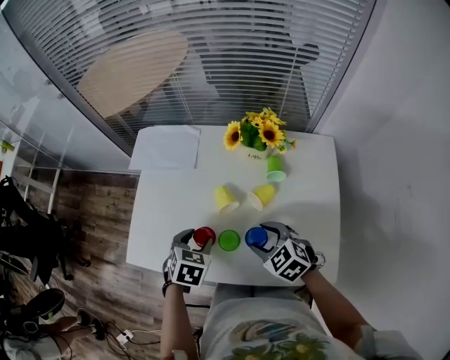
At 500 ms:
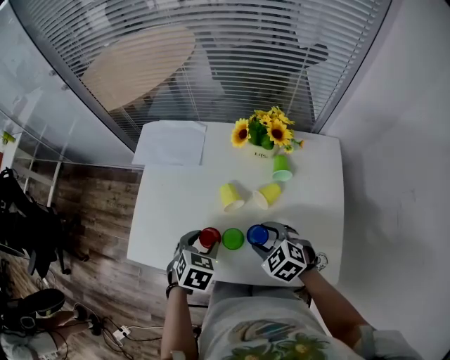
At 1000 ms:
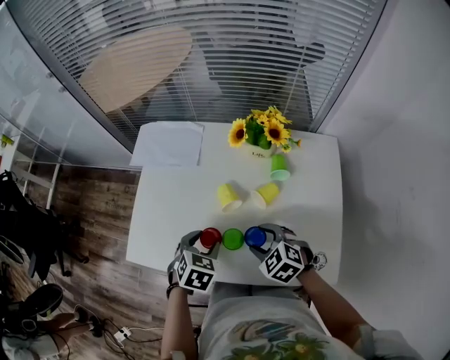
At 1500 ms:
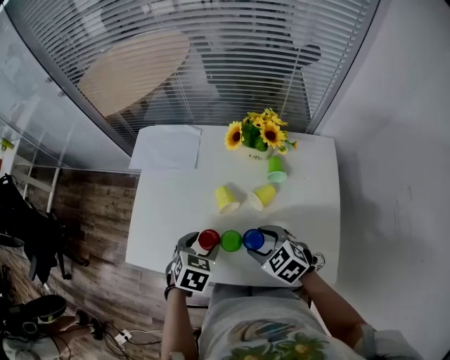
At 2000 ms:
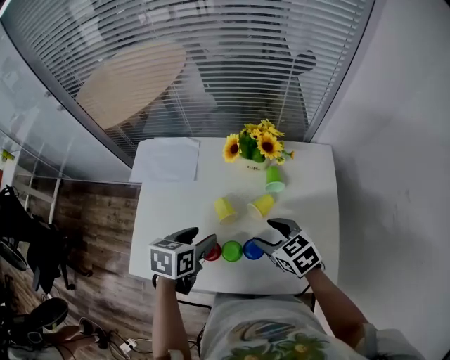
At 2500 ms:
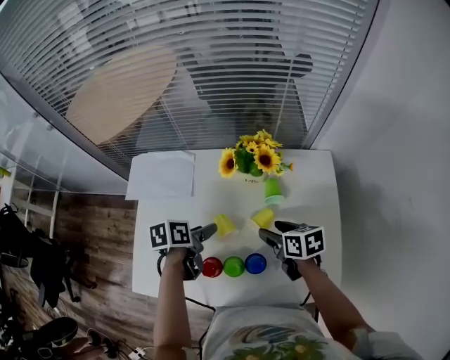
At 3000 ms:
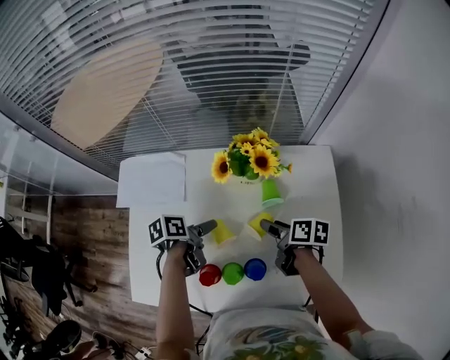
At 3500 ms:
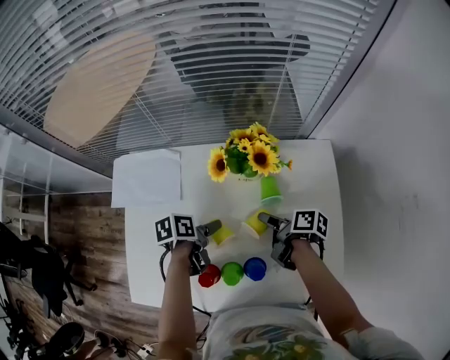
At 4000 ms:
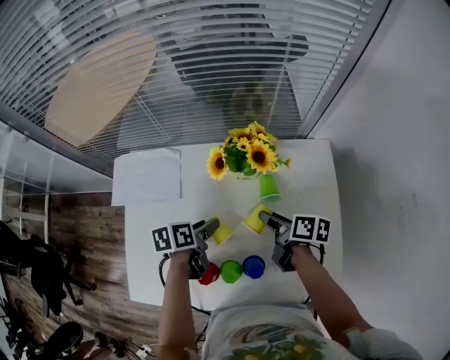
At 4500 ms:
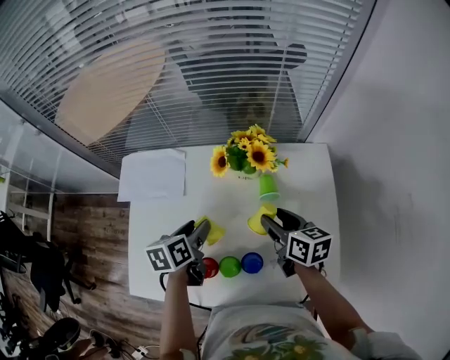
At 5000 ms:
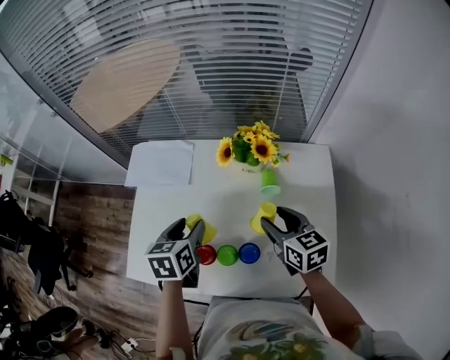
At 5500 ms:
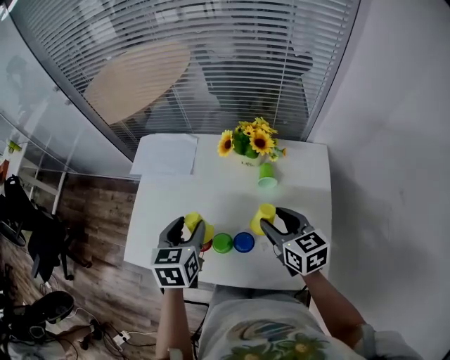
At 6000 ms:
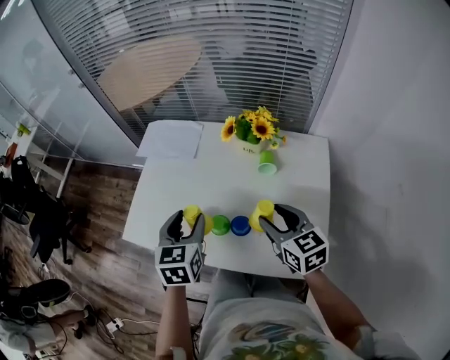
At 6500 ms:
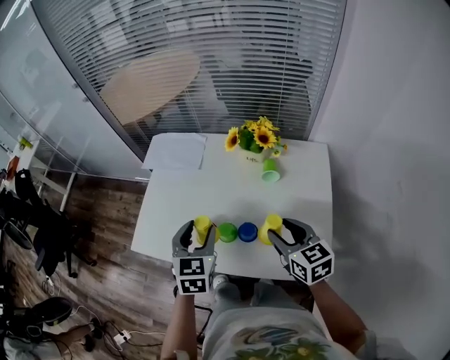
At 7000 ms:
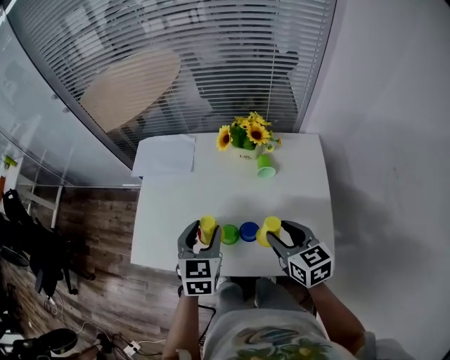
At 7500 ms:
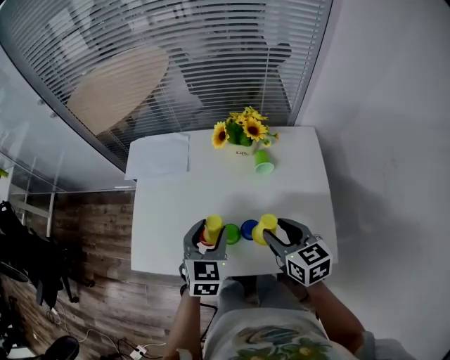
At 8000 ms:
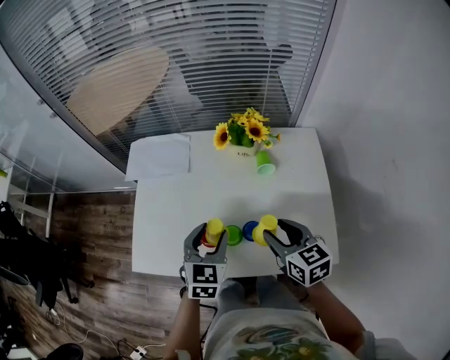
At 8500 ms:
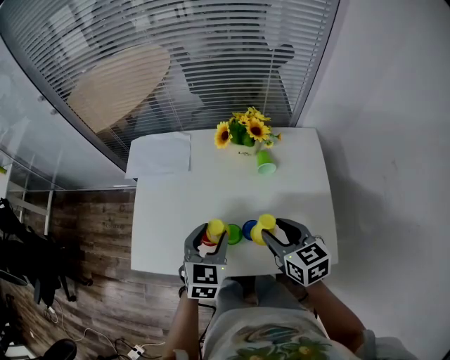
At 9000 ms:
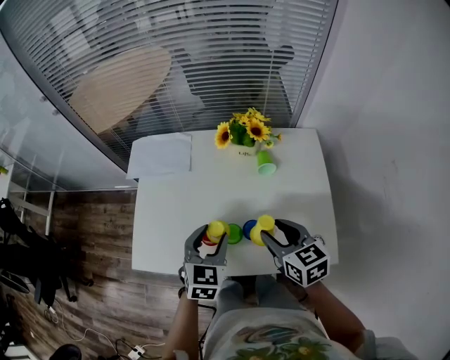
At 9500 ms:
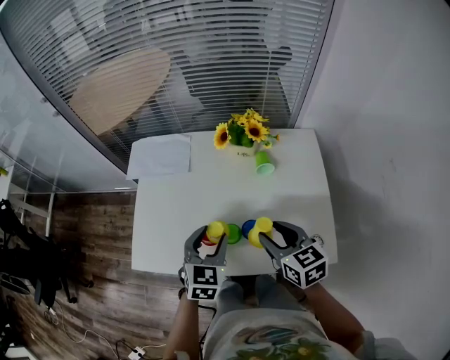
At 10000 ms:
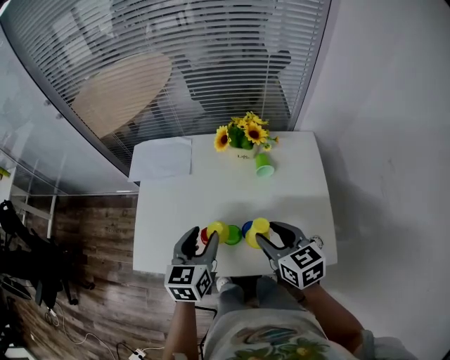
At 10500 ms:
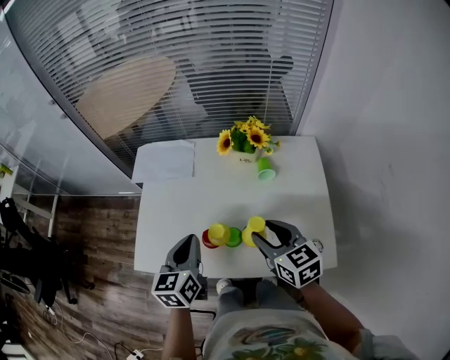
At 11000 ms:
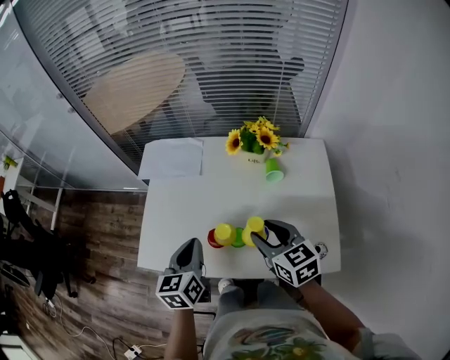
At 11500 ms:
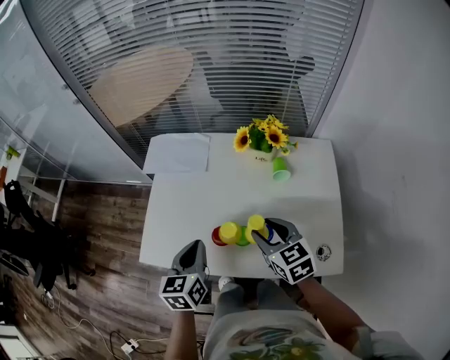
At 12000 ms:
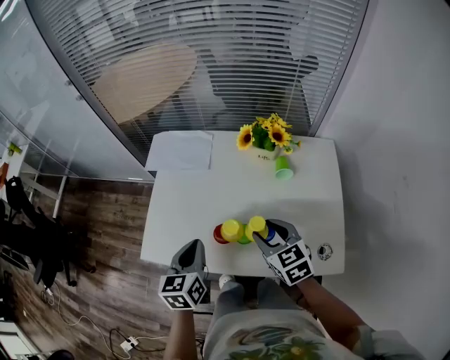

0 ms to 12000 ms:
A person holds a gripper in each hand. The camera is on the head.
0 ms to 2000 ms: The left gripper shifts some 5 cm upward, and changes its angle by approximately 30 degrees; the right gripper ends up about 5 cm from where it was, and swivels approximately 20 degrees.
2000 ms to 4000 ms: Both grippers move forward and downward, roughly 15 cm. The right gripper twists approximately 60 degrees clockwise, seen from behind, while the left gripper swivels approximately 30 degrees.
4000 ms to 6000 ms: The right gripper ends up some 20 cm from where it was, and rotates around the line of its fingers by approximately 60 degrees, counterclockwise from behind; the left gripper moves about 25 cm, and changes its angle by roughly 50 degrees.
6000 ms to 8000 ms: The left gripper ends up approximately 5 cm from where it was, and rotates some 30 degrees.
8000 ms to 10000 ms: The left gripper changes its angle by roughly 20 degrees.
10000 ms to 12000 ms: The left gripper moves to the left, some 10 cm, and closes its fingers. Meanwhile the right gripper shifts by approximately 5 cm.

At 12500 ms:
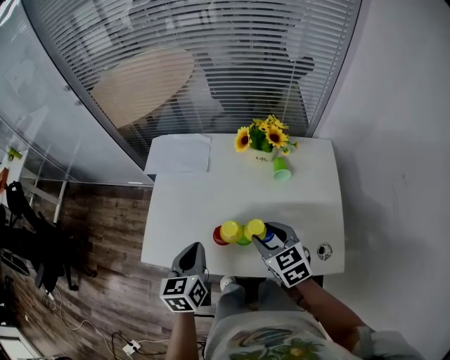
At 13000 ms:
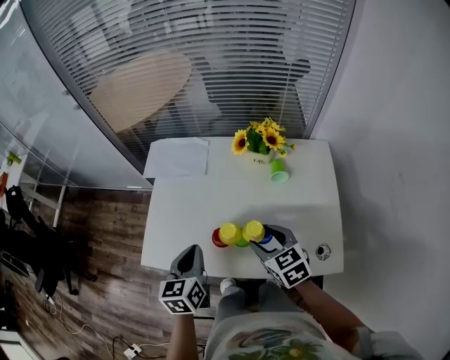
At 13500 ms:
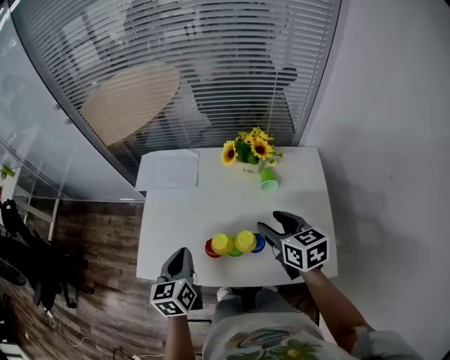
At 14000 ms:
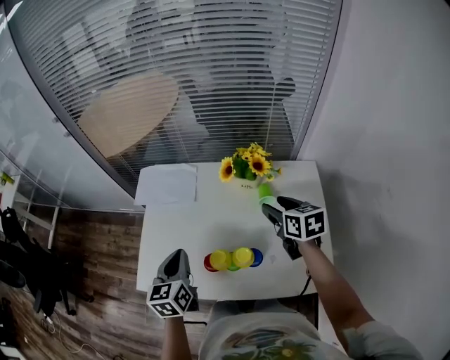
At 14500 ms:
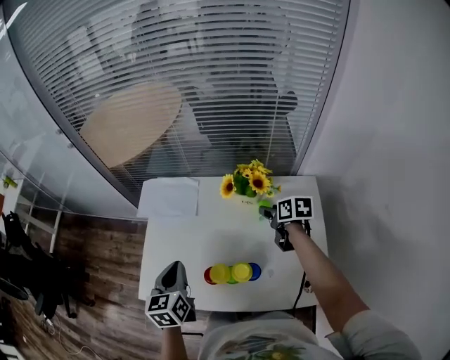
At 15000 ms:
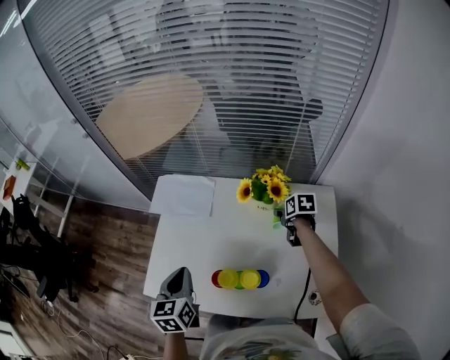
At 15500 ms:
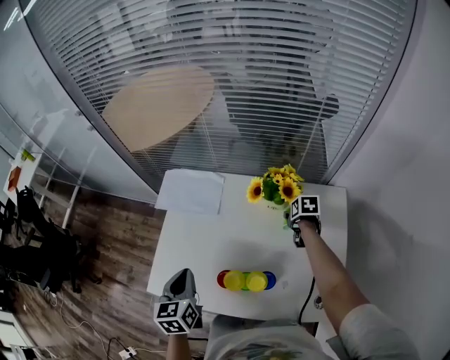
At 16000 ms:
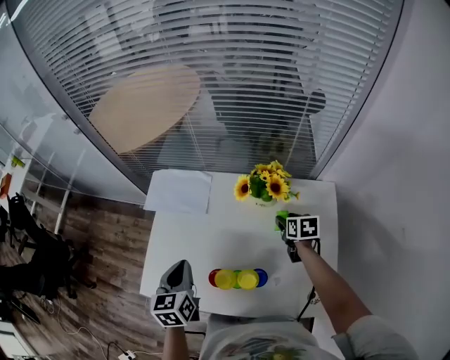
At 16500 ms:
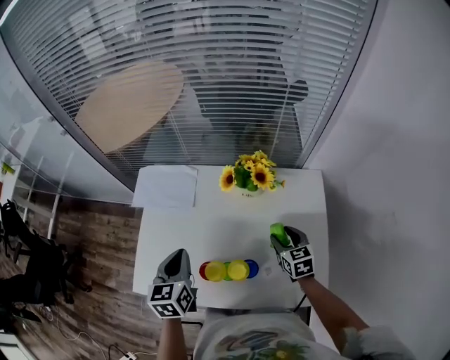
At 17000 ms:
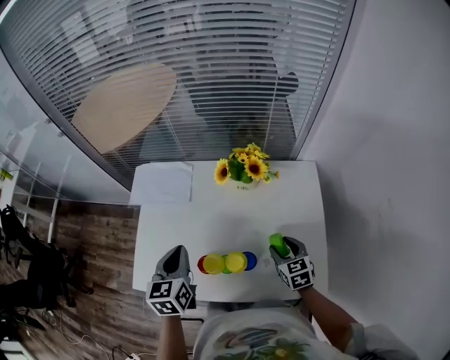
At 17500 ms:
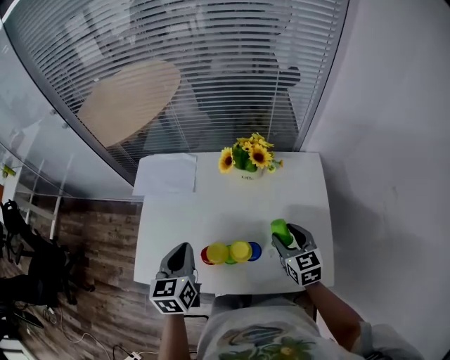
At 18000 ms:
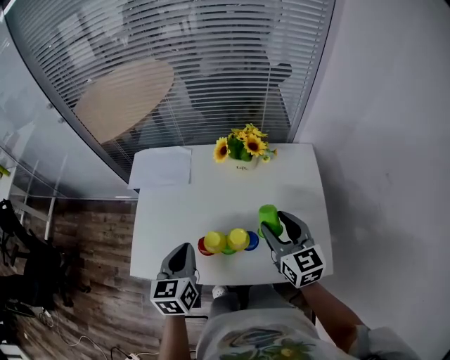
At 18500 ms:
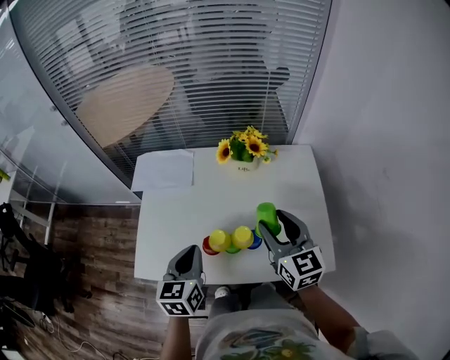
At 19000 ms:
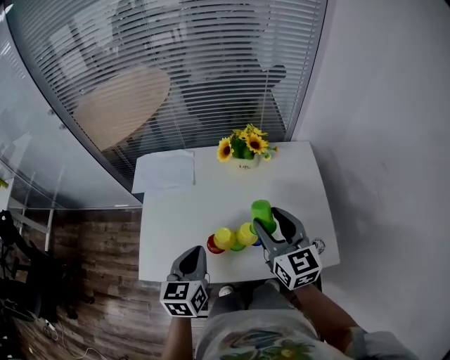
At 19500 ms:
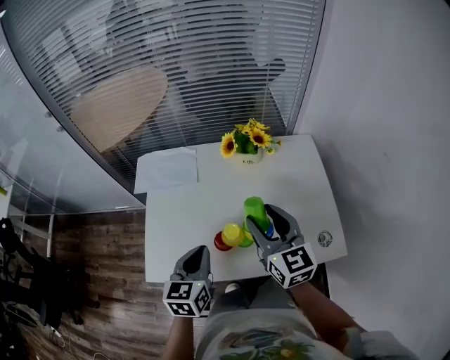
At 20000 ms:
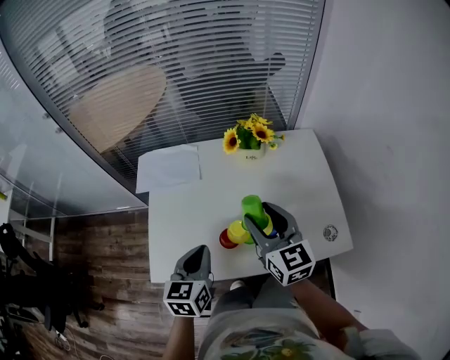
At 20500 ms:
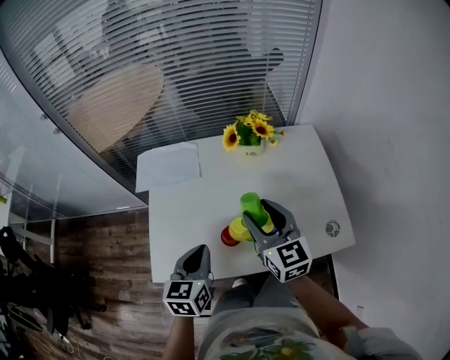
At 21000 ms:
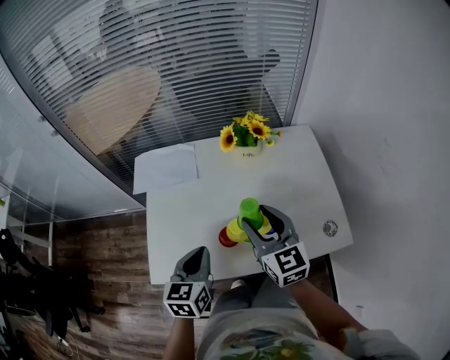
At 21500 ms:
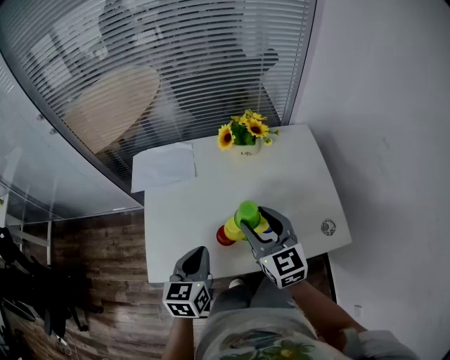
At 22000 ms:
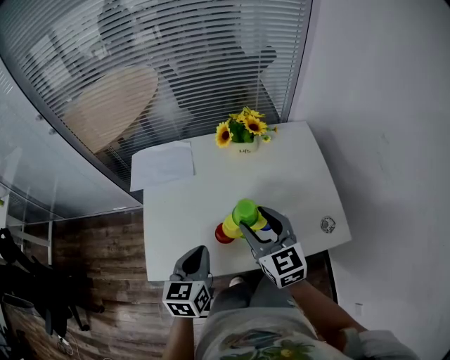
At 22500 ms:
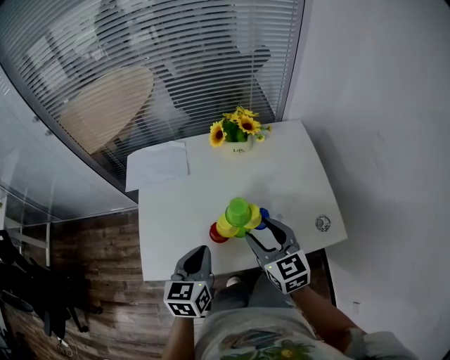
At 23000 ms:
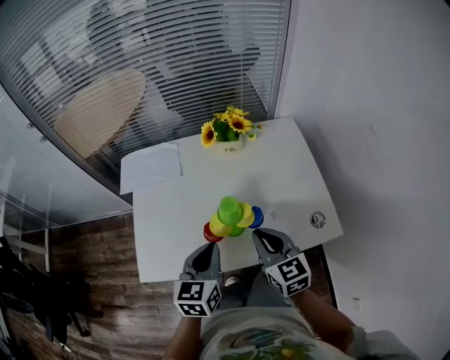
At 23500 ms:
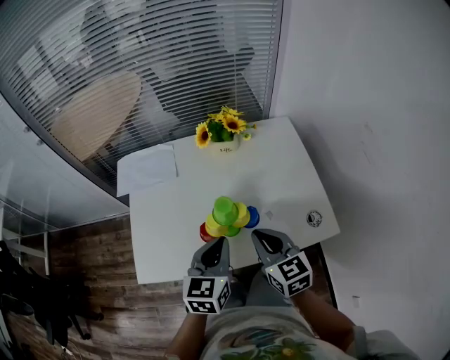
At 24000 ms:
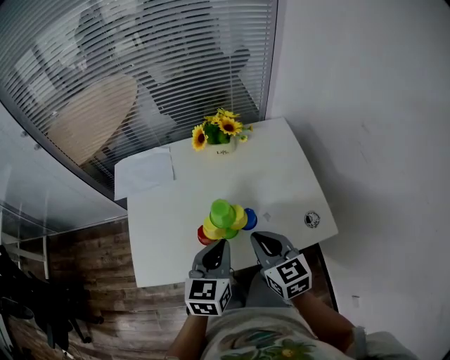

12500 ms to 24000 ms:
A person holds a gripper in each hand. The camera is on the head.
12500 ms to 14500 ms: The right gripper is displaced forward and to the right by roughly 25 cm, and rolls clockwise, seen from behind, by about 40 degrees, while the left gripper shifts some 10 cm forward.
14500 ms to 16500 ms: The right gripper goes about 10 cm backward, and swivels approximately 30 degrees.
16500 ms to 18500 ms: The left gripper travels backward by about 10 cm; the right gripper goes some 20 cm upward, backward and to the left, and swivels about 30 degrees.
18500 ms to 20000 ms: The right gripper heads to the left, covering some 10 cm.
20000 ms to 22000 ms: The grippers make only small movements.
22000 ms to 24000 ms: The left gripper travels to the right by some 10 cm. Meanwhile the right gripper is displaced to the right and backward by about 10 cm, and closes.

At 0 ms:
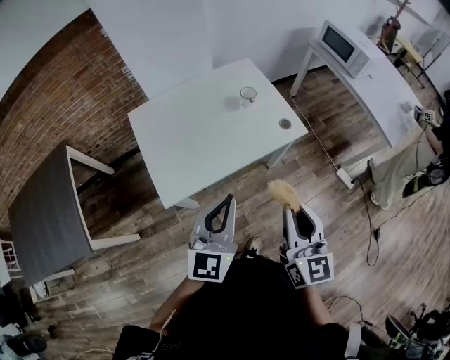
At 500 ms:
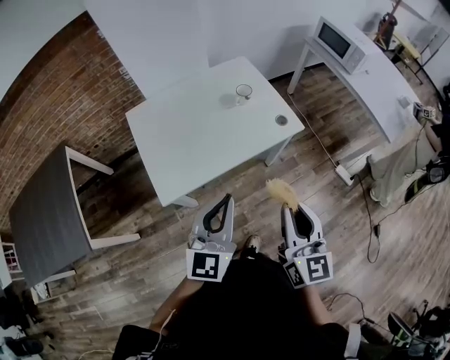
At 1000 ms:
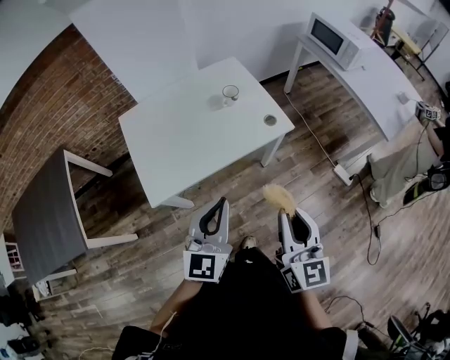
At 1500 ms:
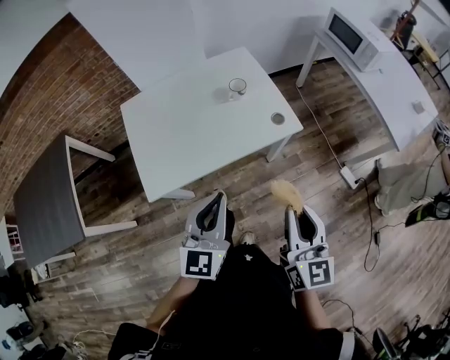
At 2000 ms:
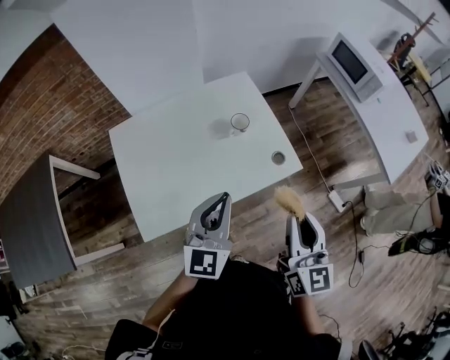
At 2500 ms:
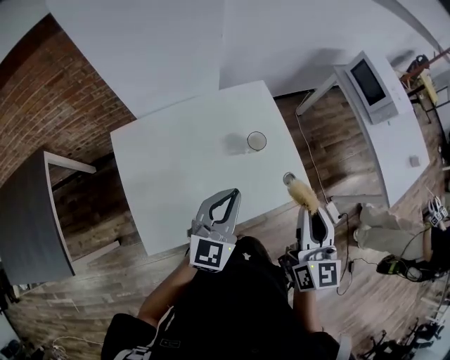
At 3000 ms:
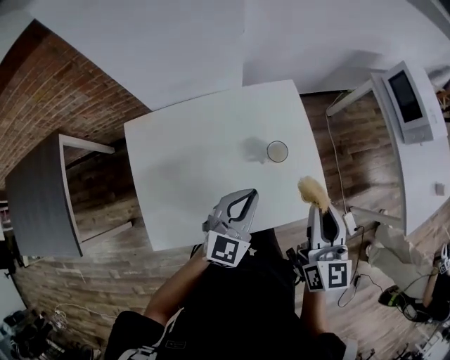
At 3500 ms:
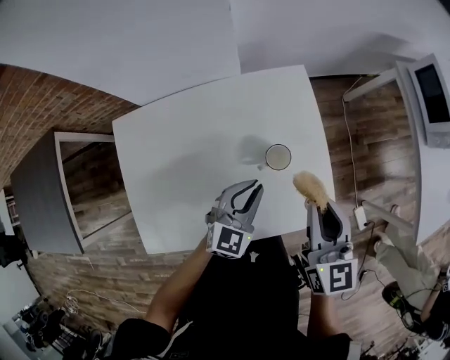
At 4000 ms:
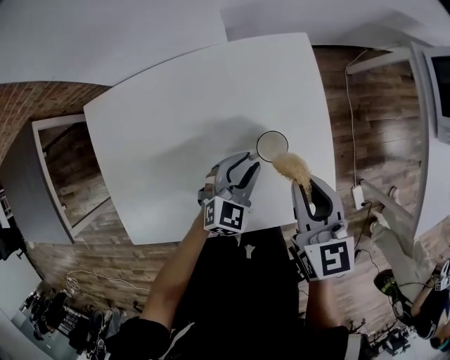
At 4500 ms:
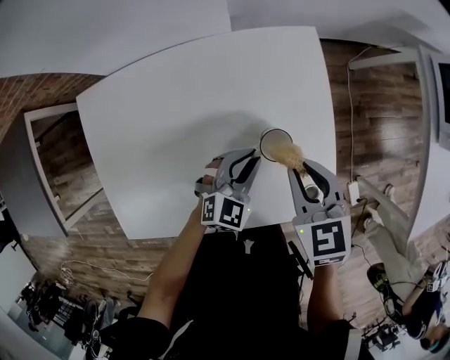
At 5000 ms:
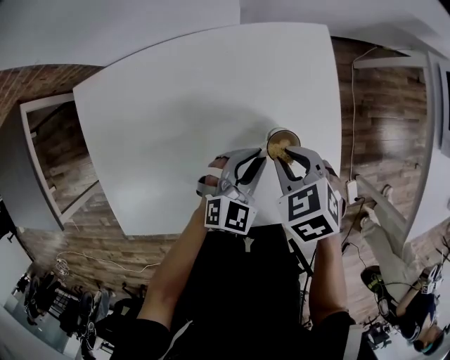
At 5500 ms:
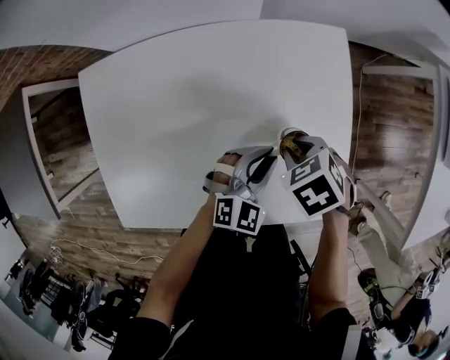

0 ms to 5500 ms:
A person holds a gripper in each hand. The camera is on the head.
0 ms to 2000 ms: Both grippers move forward, roughly 20 cm.
2000 ms to 3500 ms: The left gripper moves forward and downward, approximately 30 cm, and changes its angle by some 20 degrees, while the right gripper is displaced forward by about 30 cm, and swivels about 20 degrees.
3500 ms to 5500 ms: The left gripper travels downward by some 10 cm. The right gripper moves downward, roughly 20 cm, and tilts its fingers about 60 degrees downward.
